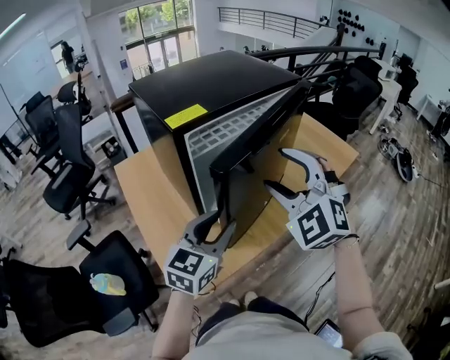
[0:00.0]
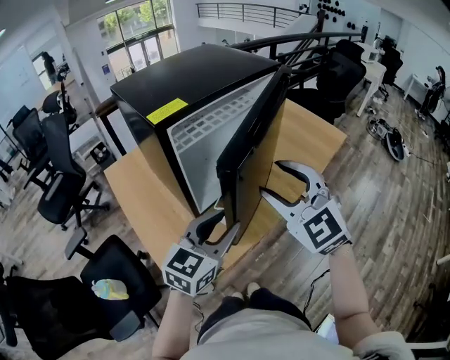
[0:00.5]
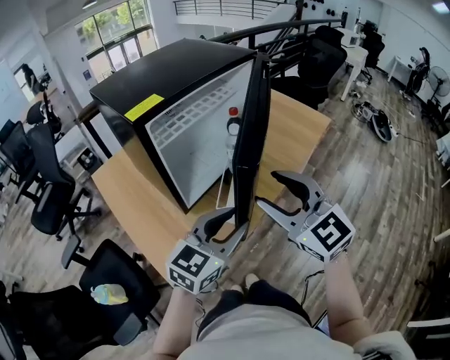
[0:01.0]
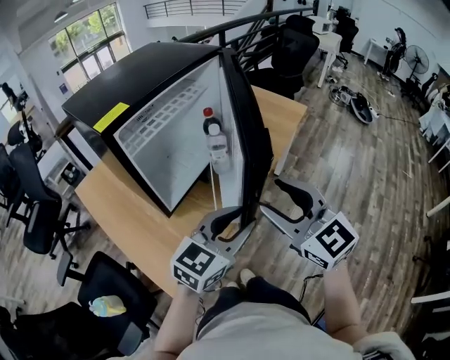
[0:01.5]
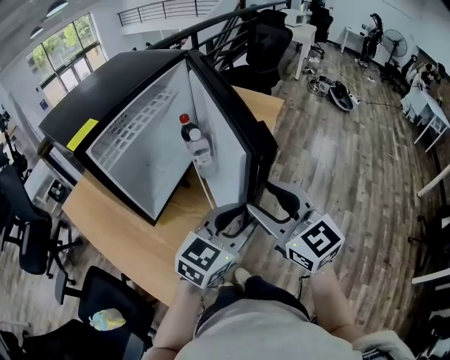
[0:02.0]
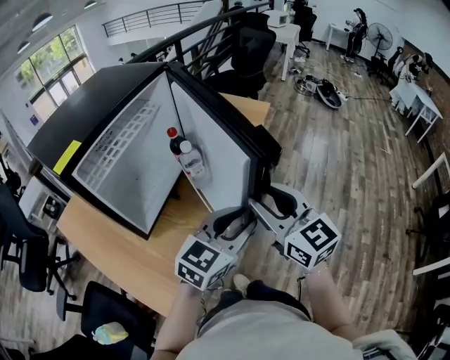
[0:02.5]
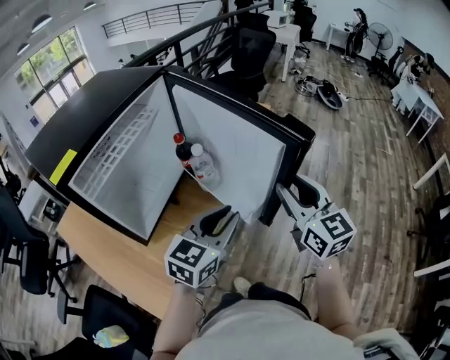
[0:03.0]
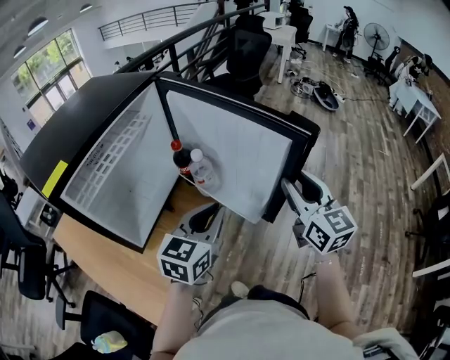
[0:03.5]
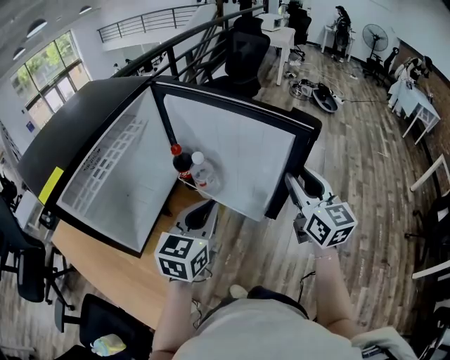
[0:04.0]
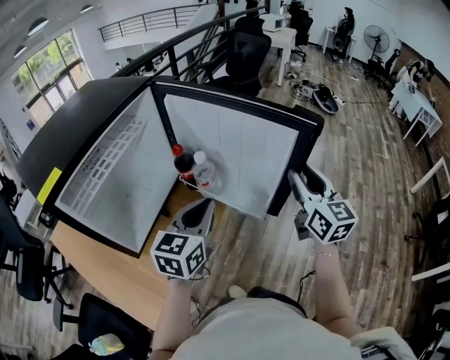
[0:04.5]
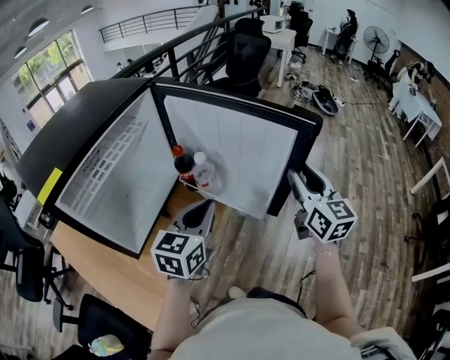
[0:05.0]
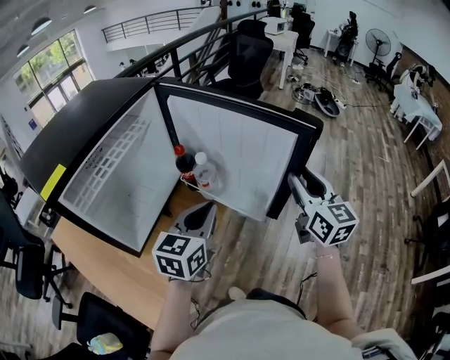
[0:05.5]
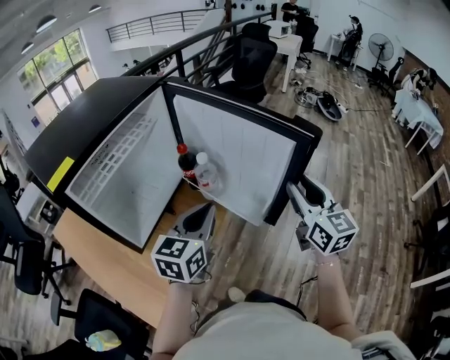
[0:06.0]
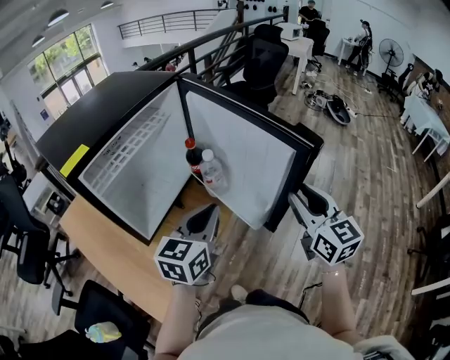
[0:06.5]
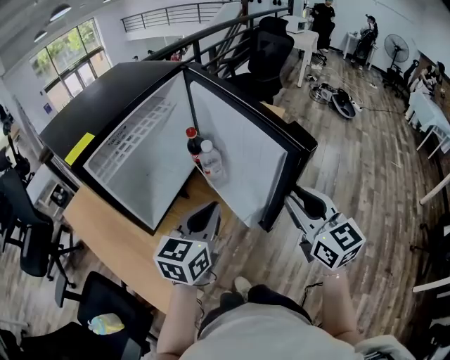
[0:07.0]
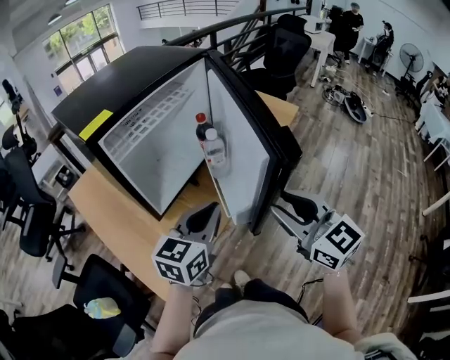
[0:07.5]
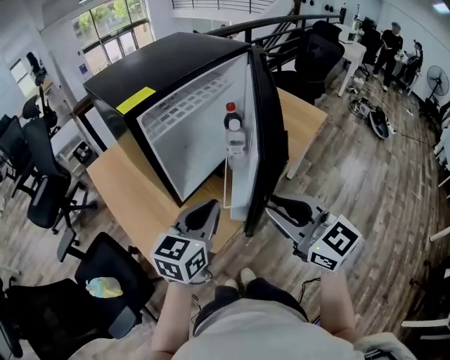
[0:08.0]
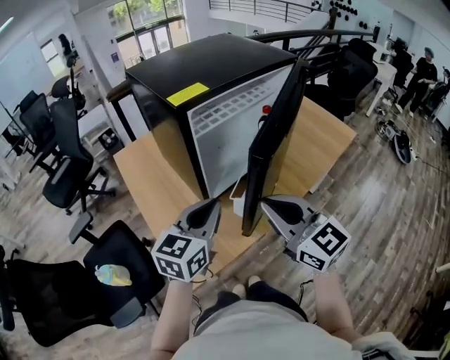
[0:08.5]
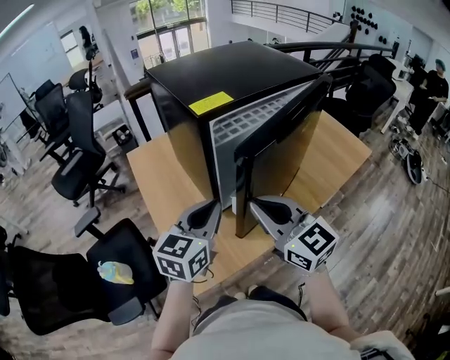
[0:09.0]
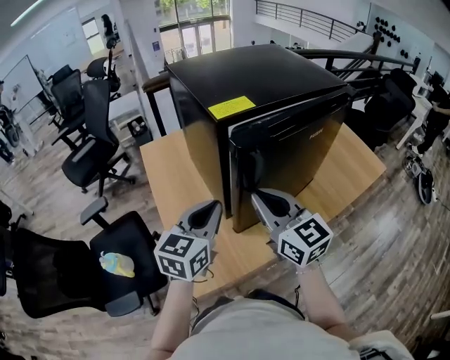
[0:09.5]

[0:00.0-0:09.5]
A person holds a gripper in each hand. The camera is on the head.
0.0 to 2.0 s: The left gripper moves to the right, about 20 cm, and swivels approximately 40 degrees. Meanwhile the right gripper shifts approximately 20 cm to the right and backward, and twists roughly 50 degrees clockwise, seen from behind.
2.0 to 4.0 s: The right gripper goes some 25 cm to the right and forward, and rotates about 30 degrees, while the left gripper moves forward, roughly 15 cm, and closes up.
4.0 to 5.5 s: There are only small adjustments of the grippers.
5.5 to 7.5 s: The right gripper travels to the left and backward by approximately 20 cm, and changes its angle by some 40 degrees. Meanwhile the left gripper shifts about 10 cm backward and to the left.
7.5 to 9.5 s: The right gripper shifts by about 30 cm, swivels approximately 20 degrees, and closes up. Meanwhile the left gripper shifts by approximately 25 cm, and turns by approximately 30 degrees.

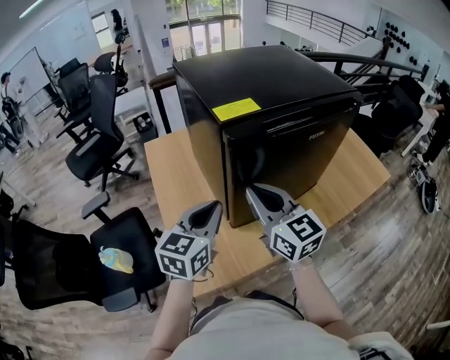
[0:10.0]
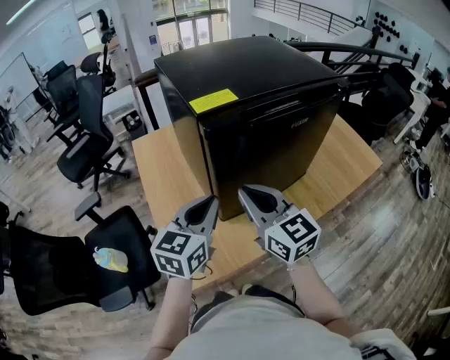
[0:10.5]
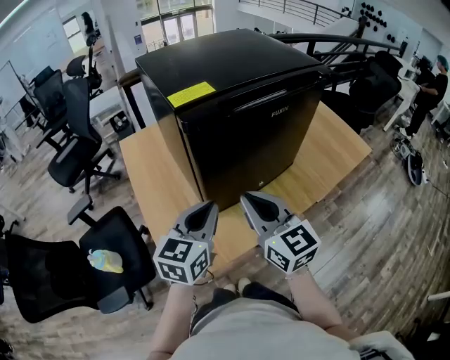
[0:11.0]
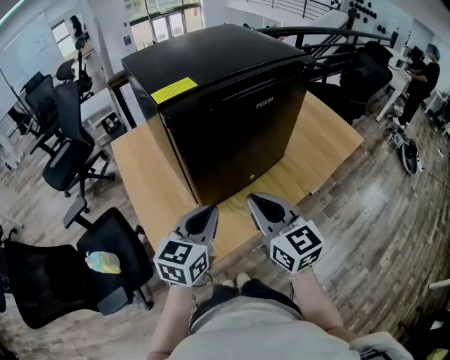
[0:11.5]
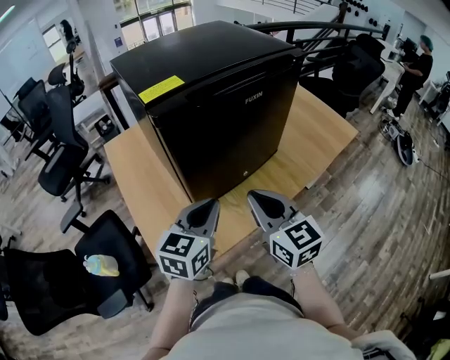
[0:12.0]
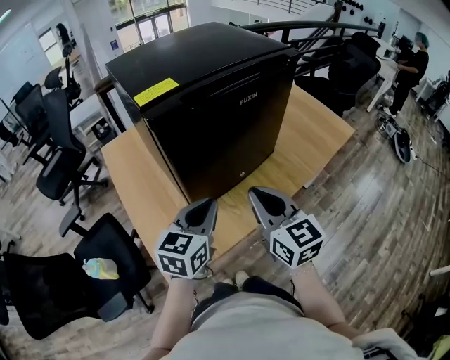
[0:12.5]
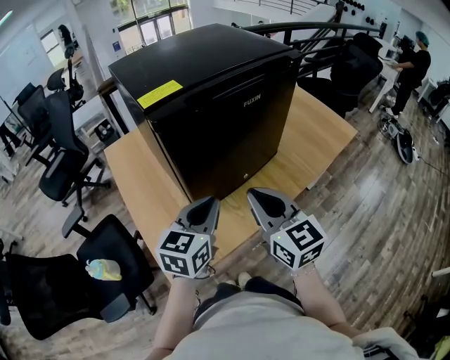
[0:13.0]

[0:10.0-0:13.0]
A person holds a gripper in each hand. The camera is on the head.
10.0 to 11.5 s: Both grippers travel together to the right and backward, about 10 cm.
11.5 to 13.0 s: The grippers stay close to where they were, moving slightly.

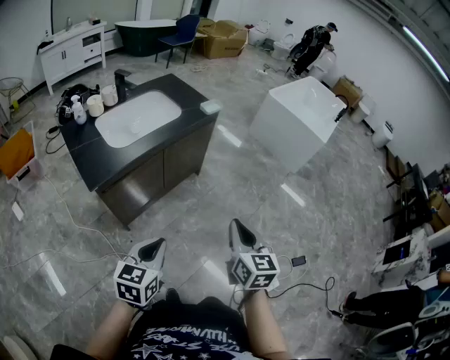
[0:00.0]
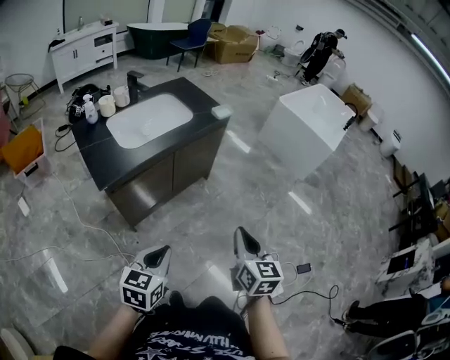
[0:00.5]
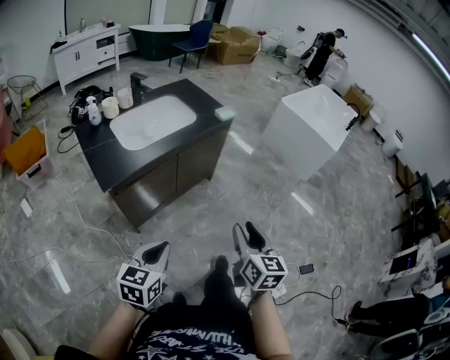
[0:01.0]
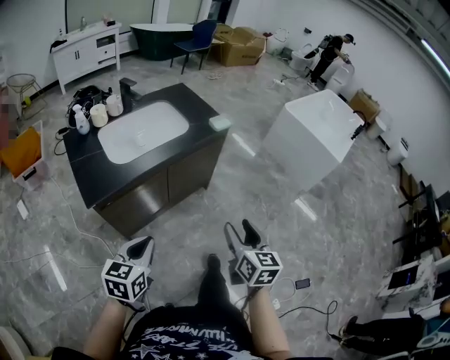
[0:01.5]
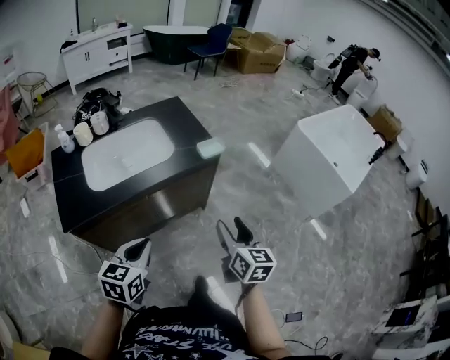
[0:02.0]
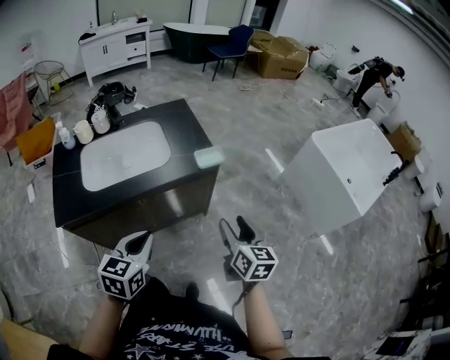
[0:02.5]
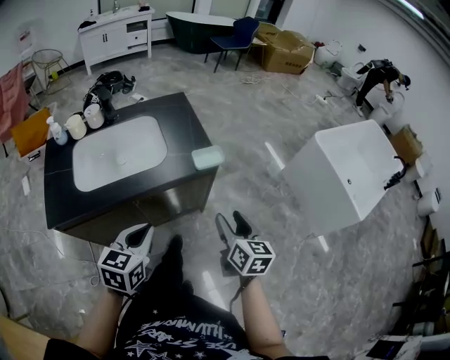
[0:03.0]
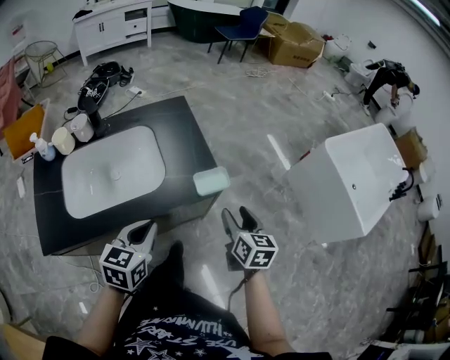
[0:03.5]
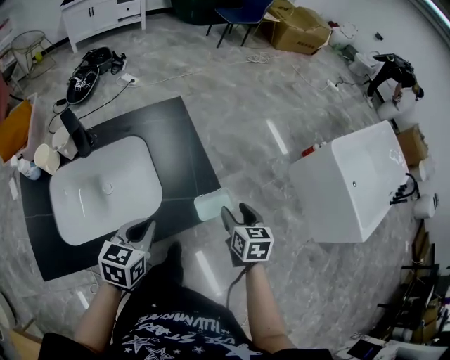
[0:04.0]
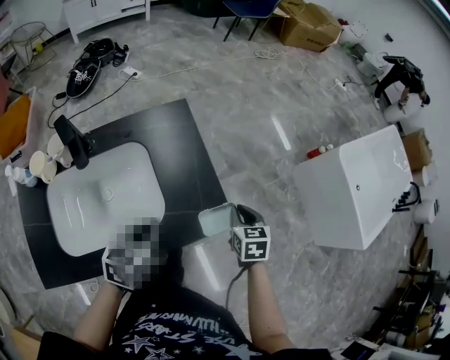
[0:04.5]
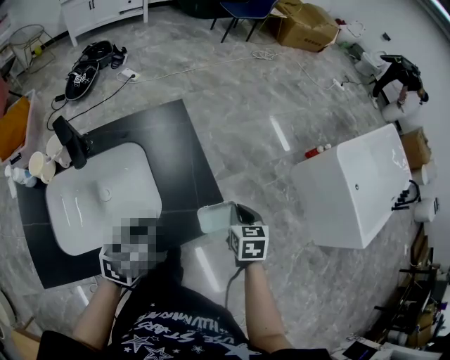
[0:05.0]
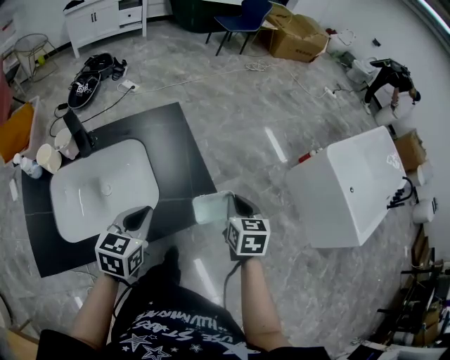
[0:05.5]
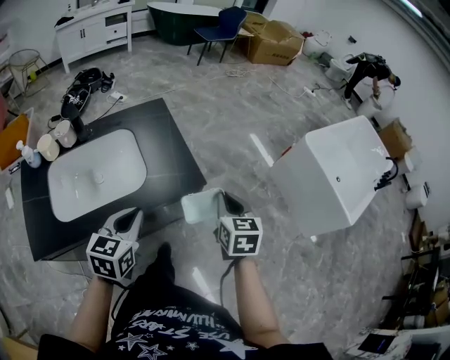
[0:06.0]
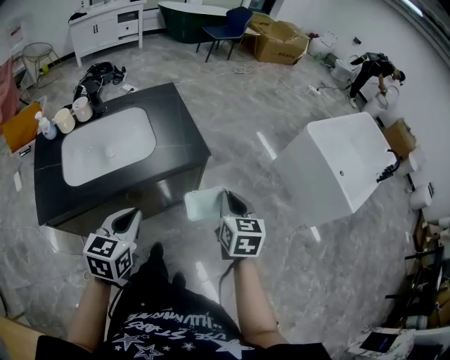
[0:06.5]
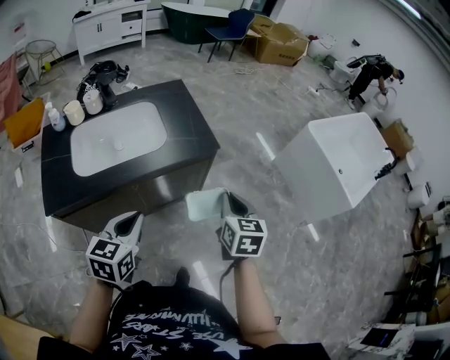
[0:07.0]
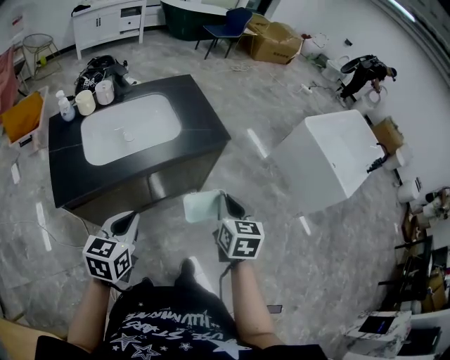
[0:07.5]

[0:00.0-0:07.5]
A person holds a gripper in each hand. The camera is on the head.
0.0 to 2.0 s: Both grippers move forward, some 30 cm. The right gripper opens its fingers.
2.0 to 4.0 s: The grippers both shift forward by roughly 35 cm. The right gripper turns by approximately 30 degrees.
4.0 to 5.5 s: The right gripper shifts by approximately 5 cm, and closes.
5.5 to 7.5 s: Both grippers move backward, roughly 35 cm.

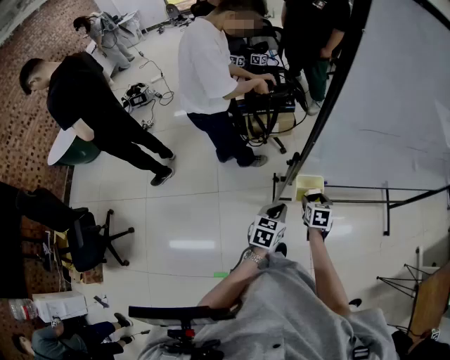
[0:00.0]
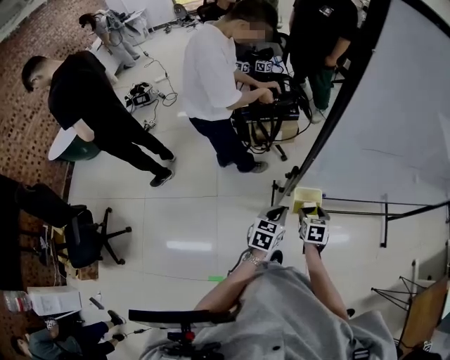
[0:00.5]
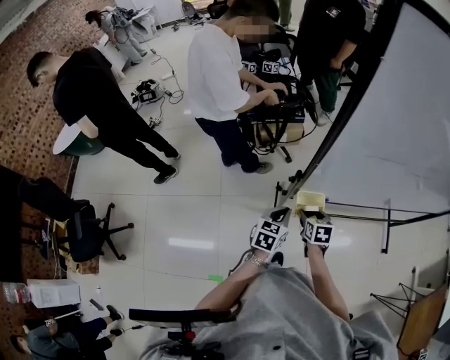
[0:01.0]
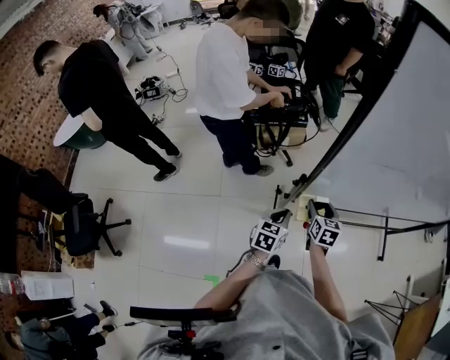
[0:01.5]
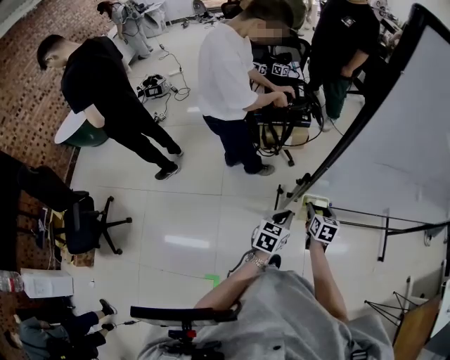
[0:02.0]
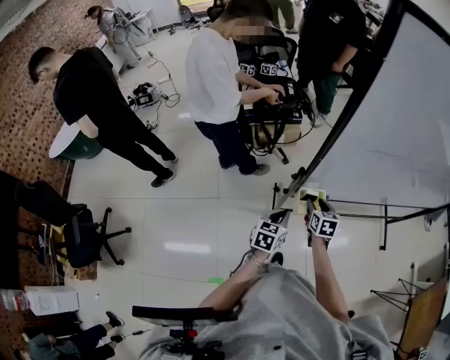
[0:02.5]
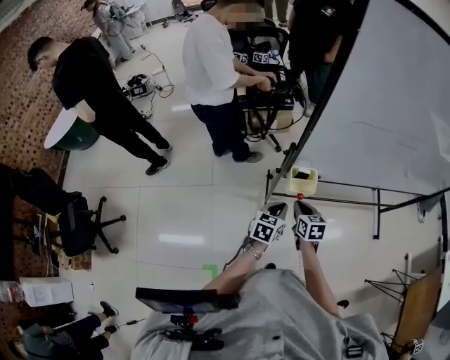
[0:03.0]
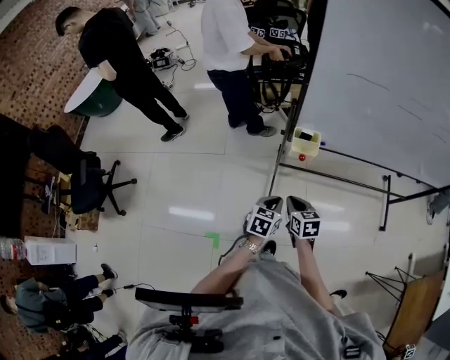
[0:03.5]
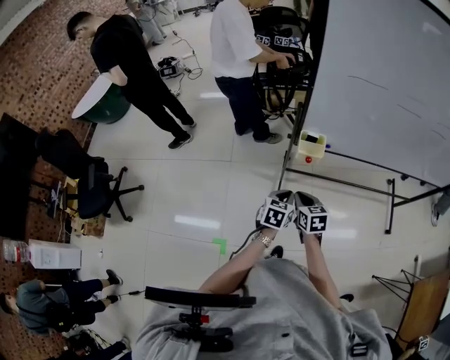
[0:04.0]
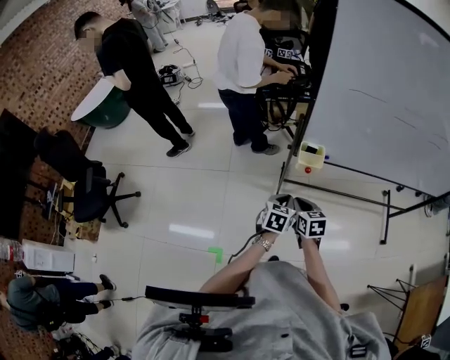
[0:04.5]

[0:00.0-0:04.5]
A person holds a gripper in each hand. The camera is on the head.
0.0 to 2.0 s: The right gripper travels upward and back again, approximately 10 cm each way.
2.0 to 4.5 s: The two grippers go some 25 cm backward. The right gripper rotates some 20 degrees, and closes.

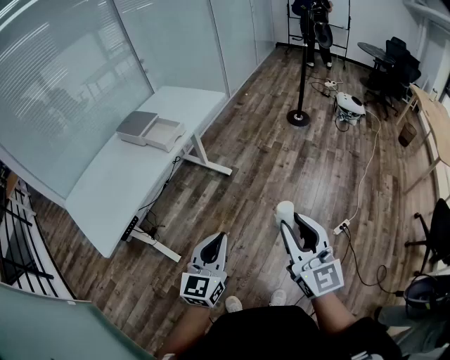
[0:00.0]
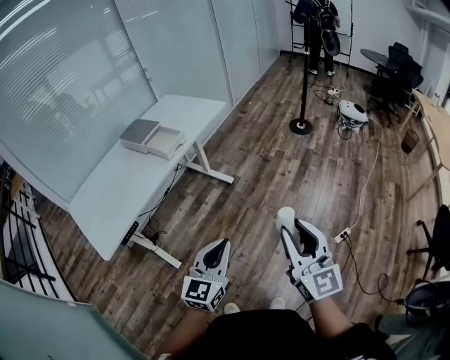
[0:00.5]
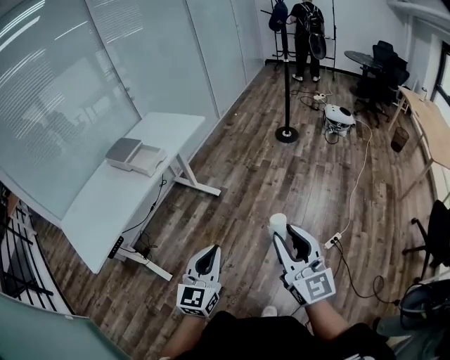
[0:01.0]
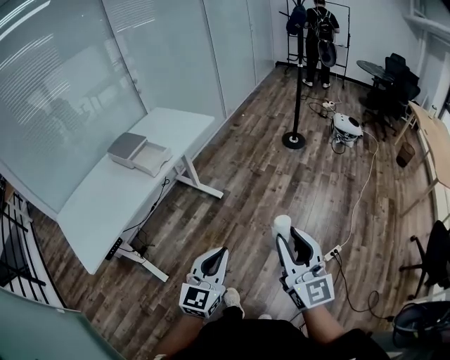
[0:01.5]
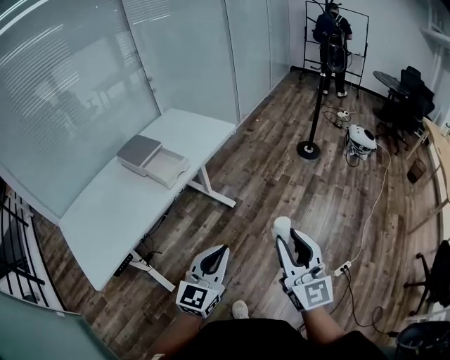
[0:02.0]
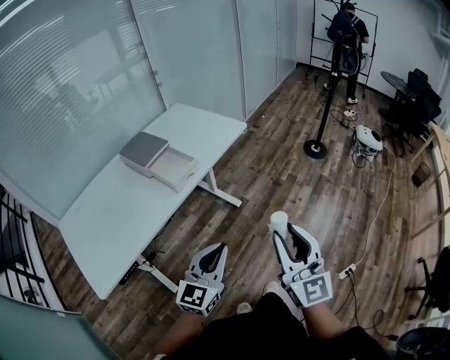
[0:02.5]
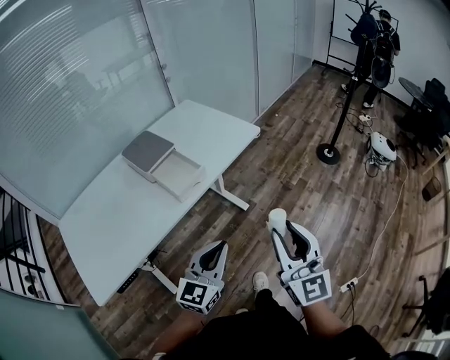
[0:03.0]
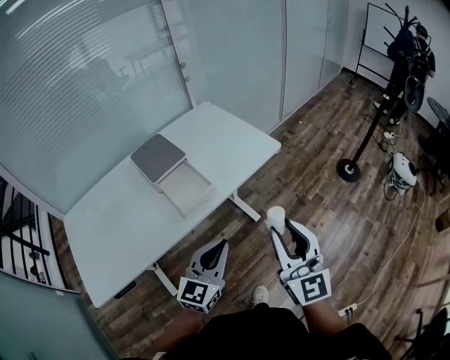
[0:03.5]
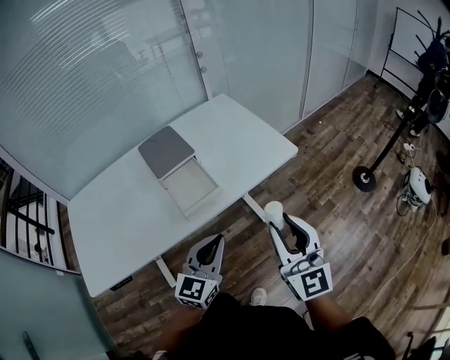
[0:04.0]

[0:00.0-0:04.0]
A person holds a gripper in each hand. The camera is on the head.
0.0 to 2.0 s: The two grippers go roughly 15 cm forward.
2.0 to 4.0 s: The right gripper shifts by some 35 cm, and changes its angle by roughly 30 degrees, while the left gripper changes place by roughly 30 cm, and changes its angle by roughly 30 degrees.
